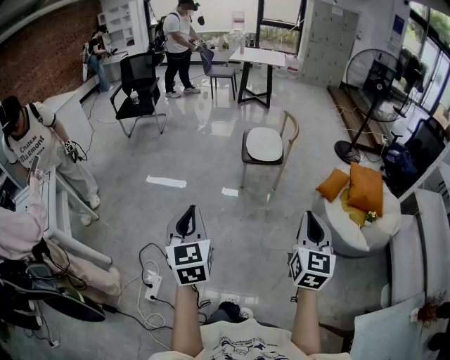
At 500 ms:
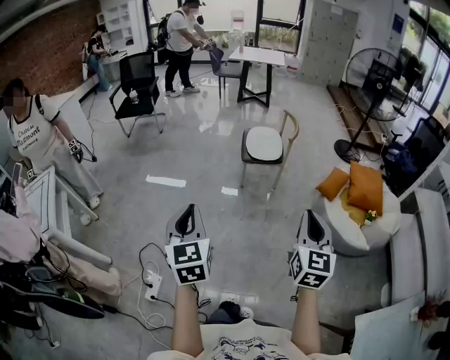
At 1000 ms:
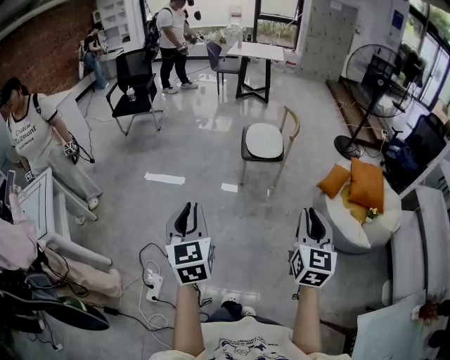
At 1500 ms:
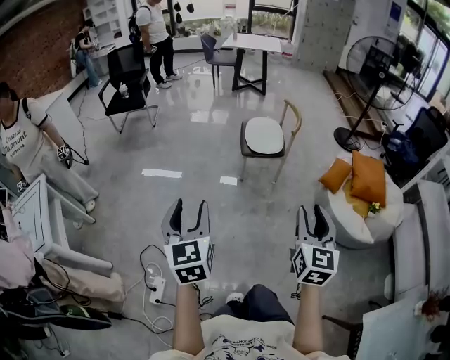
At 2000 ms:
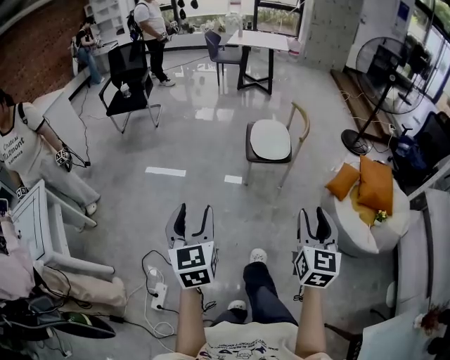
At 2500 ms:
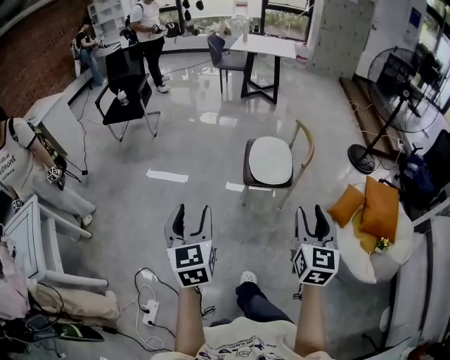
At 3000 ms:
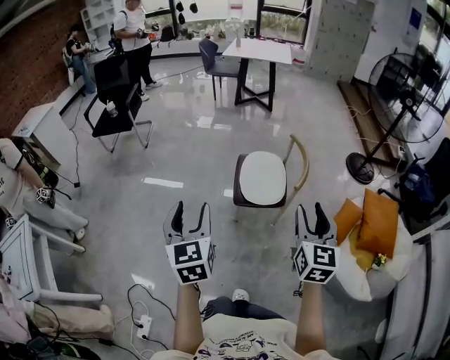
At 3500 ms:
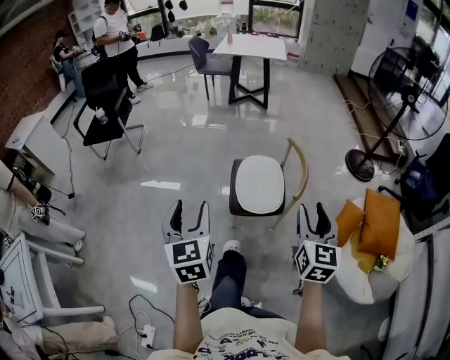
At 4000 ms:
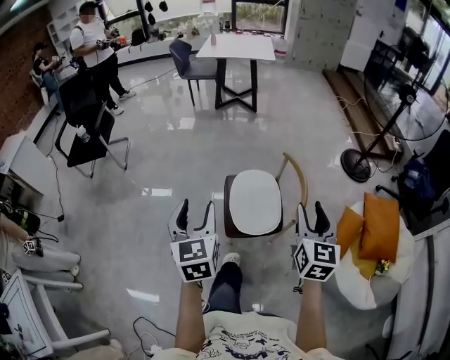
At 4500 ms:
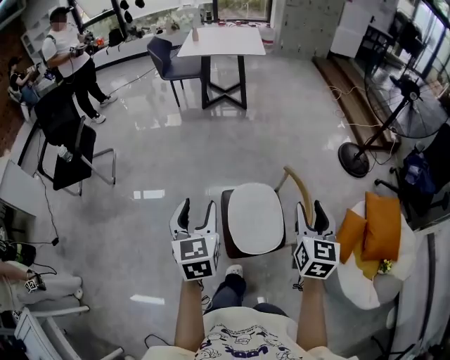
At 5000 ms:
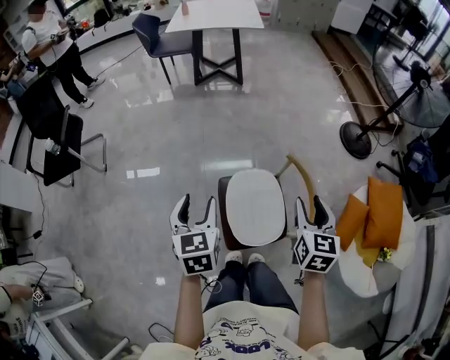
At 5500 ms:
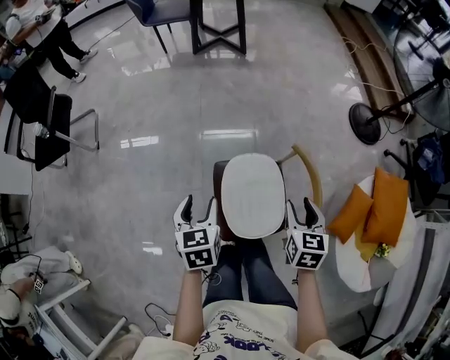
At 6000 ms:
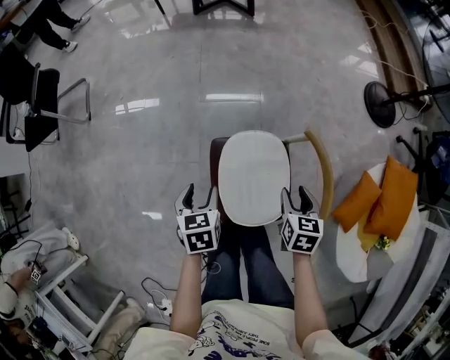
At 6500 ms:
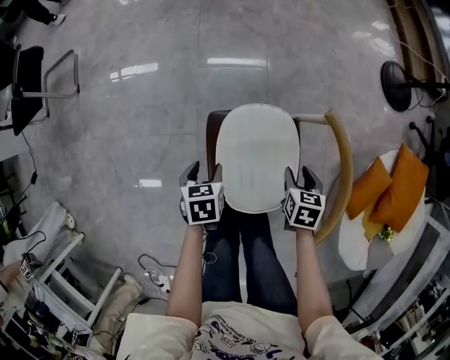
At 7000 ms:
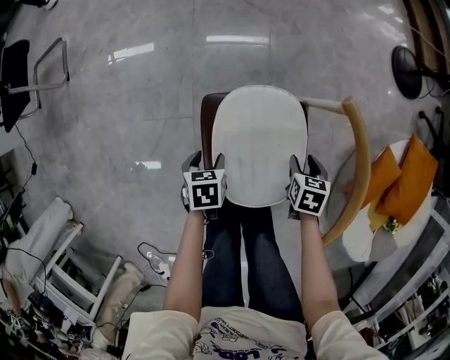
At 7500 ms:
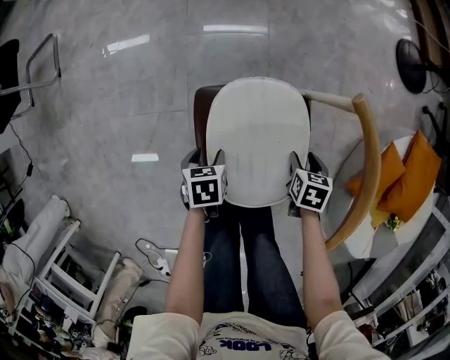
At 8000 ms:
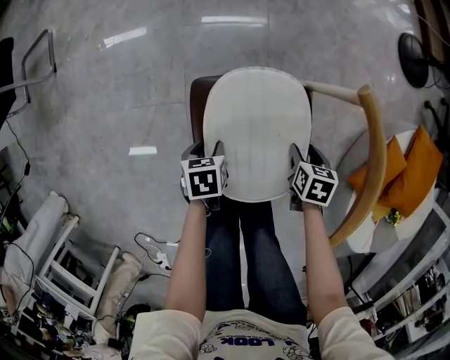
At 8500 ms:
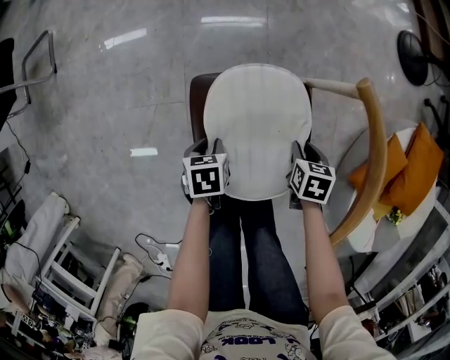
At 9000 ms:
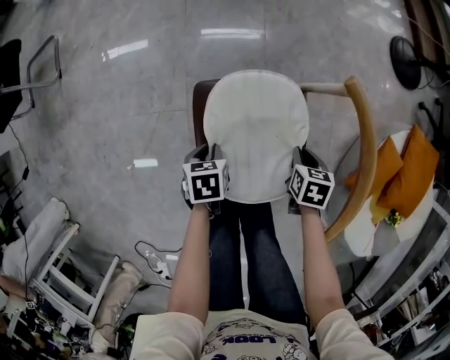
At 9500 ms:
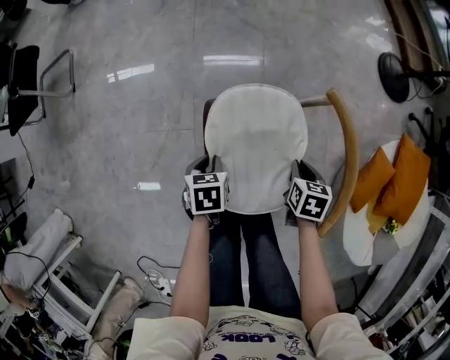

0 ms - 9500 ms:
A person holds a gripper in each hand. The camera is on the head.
0 ms - 2000 ms: The grippers both shift forward by some 20 cm. The right gripper opens up; the left gripper opens its fingers.
2000 ms - 4000 ms: The pair of grippers is taken forward, roughly 80 cm.
4000 ms - 5500 ms: Both grippers move forward and downward, some 50 cm. The left gripper swivels about 30 degrees, while the right gripper rotates about 30 degrees.
5500 ms - 7500 ms: The grippers both shift downward by approximately 50 cm. The right gripper angles its fingers downward, by approximately 30 degrees. The left gripper tilts its fingers approximately 30 degrees downward.
7500 ms - 9500 ms: The two grippers go approximately 15 cm upward. The left gripper closes. Meanwhile the right gripper closes its fingers.

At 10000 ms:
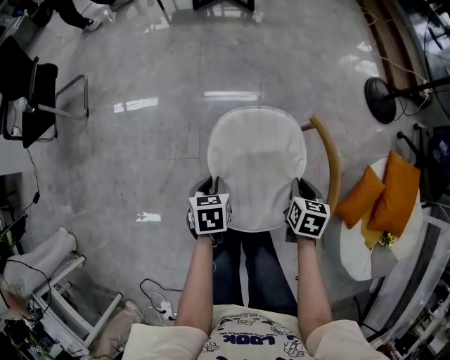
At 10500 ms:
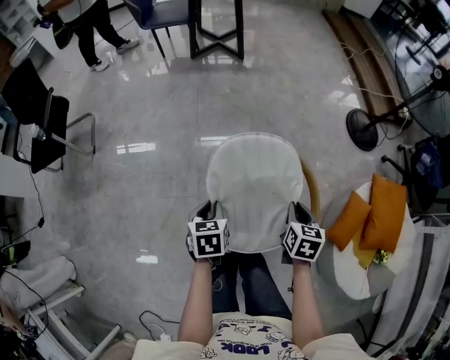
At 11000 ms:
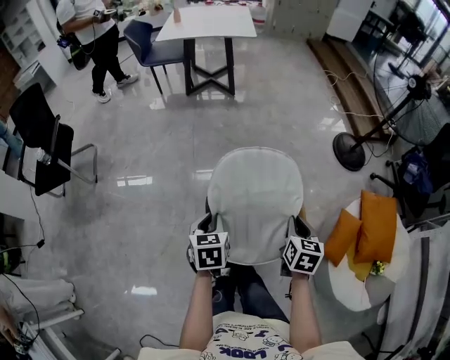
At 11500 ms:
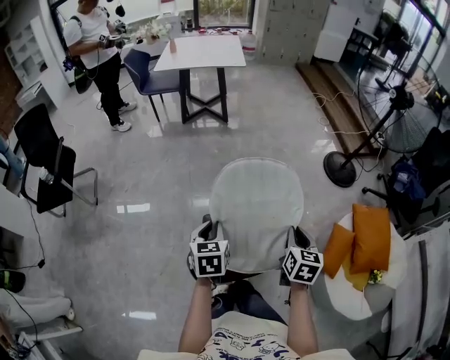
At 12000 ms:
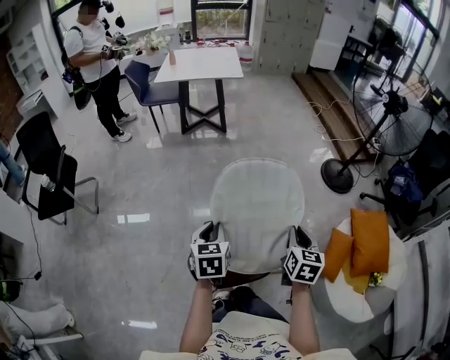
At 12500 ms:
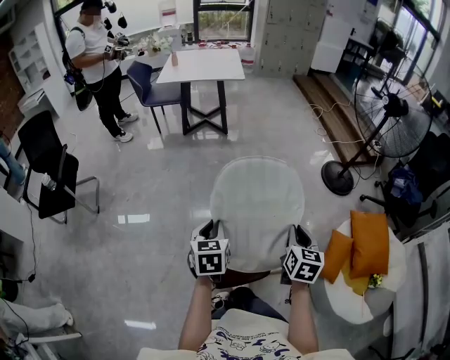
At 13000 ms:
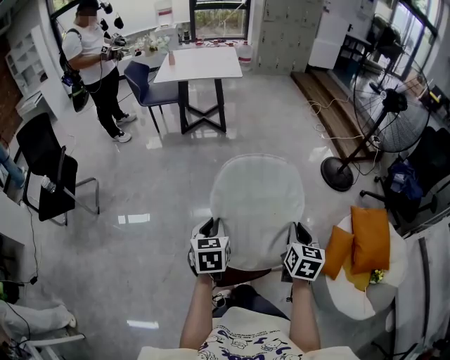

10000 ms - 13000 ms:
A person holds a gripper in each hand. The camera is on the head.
10000 ms - 11500 ms: Both grippers move upward, some 35 cm. The right gripper rotates some 30 degrees; the left gripper changes its angle by approximately 30 degrees.
11500 ms - 13000 ms: The grippers stay close to where they were, moving slightly.

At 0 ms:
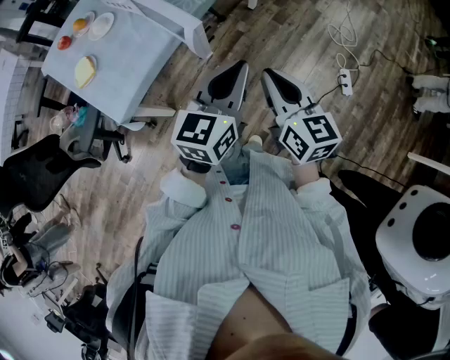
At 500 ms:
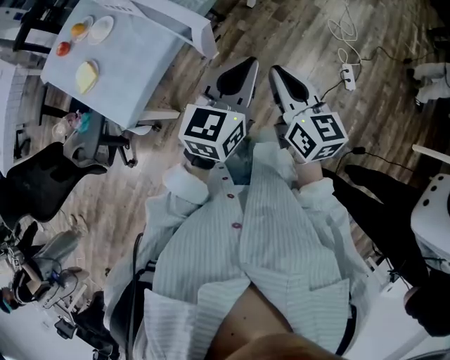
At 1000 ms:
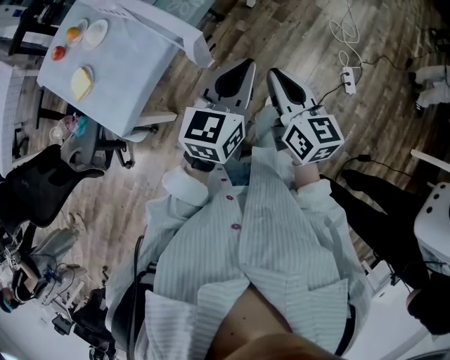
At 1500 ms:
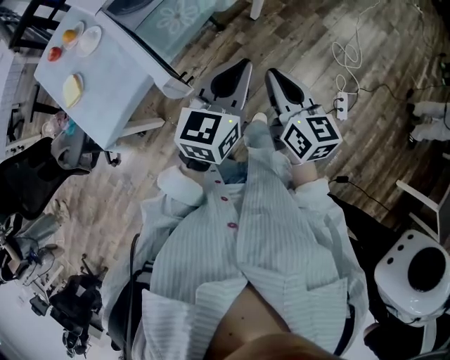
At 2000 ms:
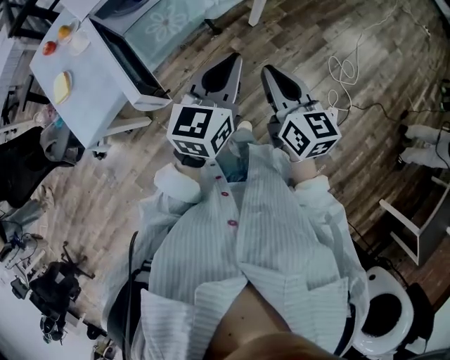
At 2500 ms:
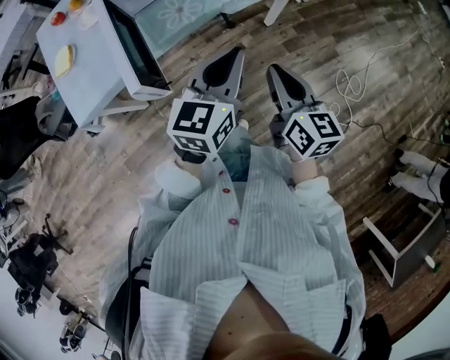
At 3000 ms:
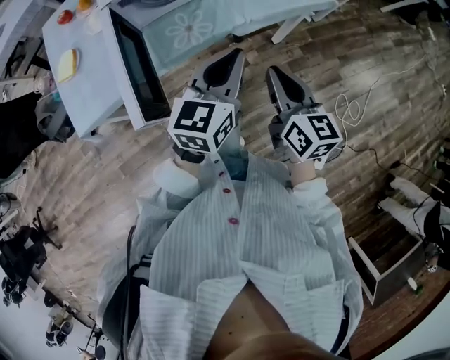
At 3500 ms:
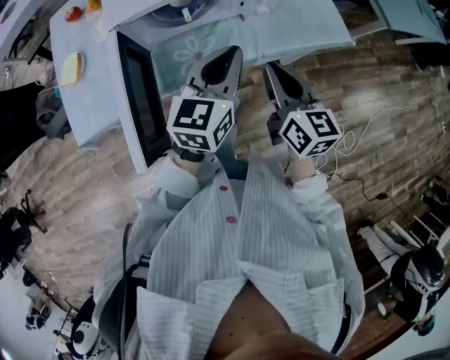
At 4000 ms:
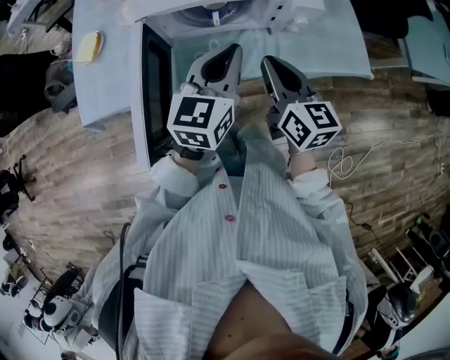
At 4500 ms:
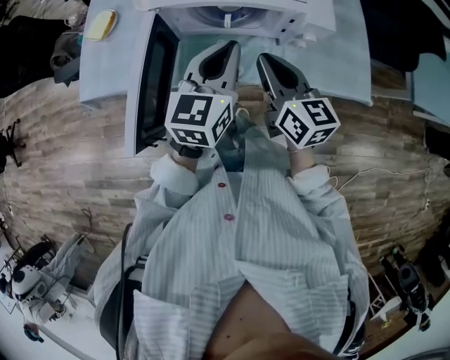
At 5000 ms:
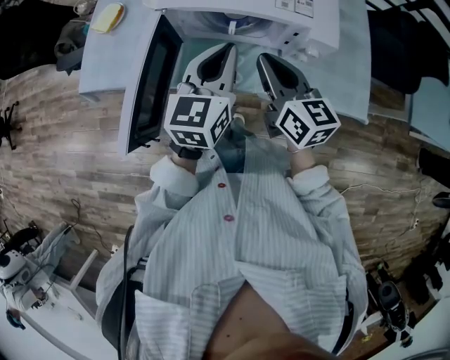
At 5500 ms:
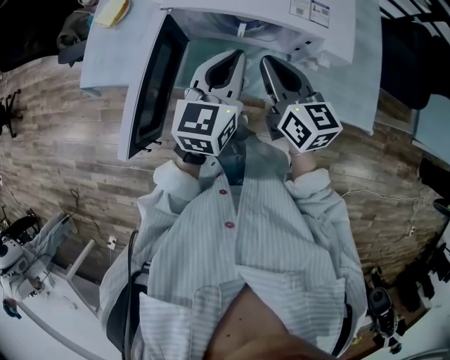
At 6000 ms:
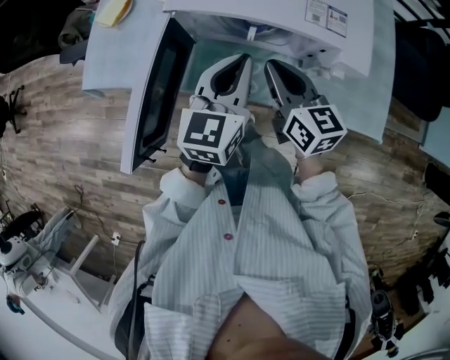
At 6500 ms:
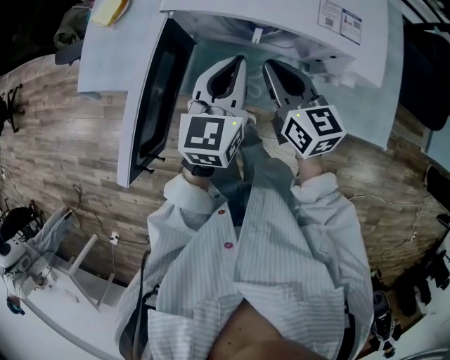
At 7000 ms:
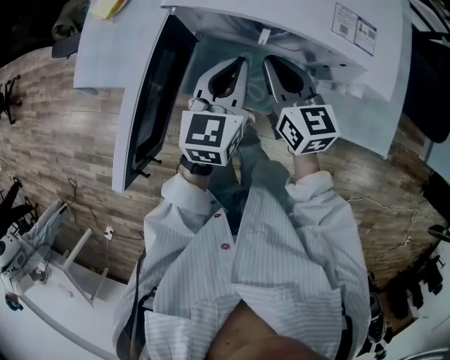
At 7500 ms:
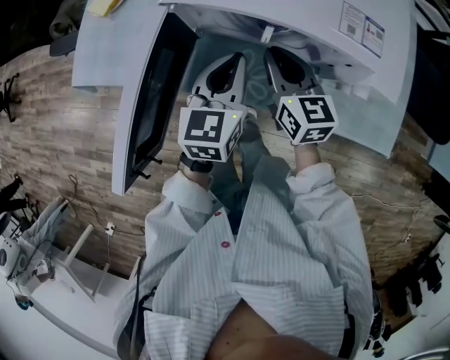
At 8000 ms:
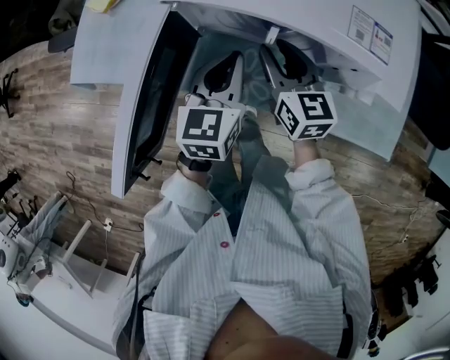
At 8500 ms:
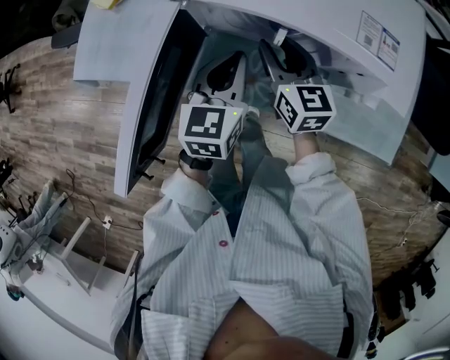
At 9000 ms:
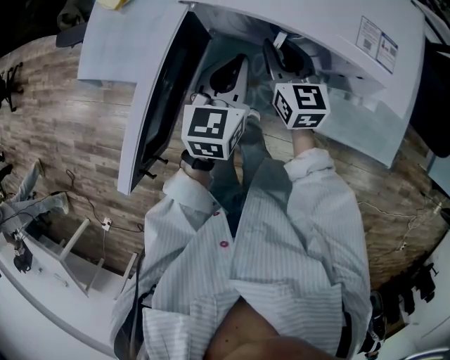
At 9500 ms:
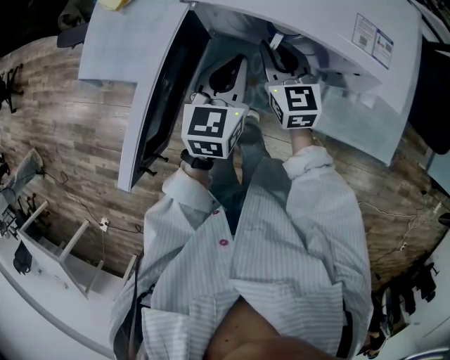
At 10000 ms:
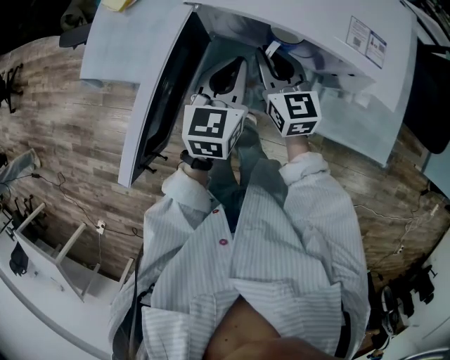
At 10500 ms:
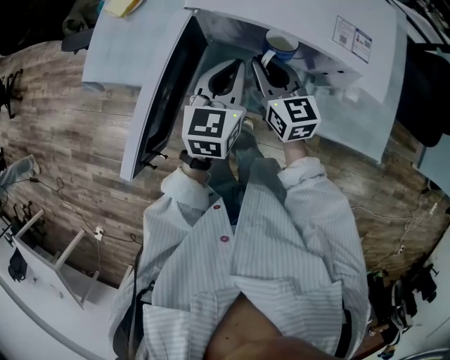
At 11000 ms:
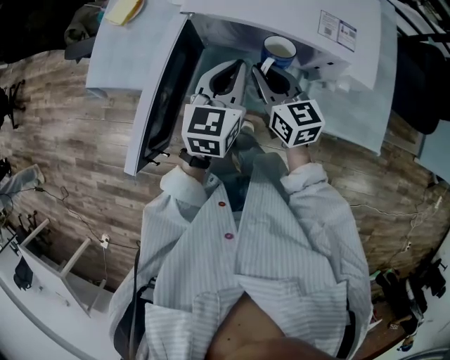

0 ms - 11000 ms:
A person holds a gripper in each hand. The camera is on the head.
0 ms - 2000 ms: The two grippers go approximately 25 cm forward and to the right.
2000 ms - 3500 ms: The grippers both shift forward by about 25 cm. The left gripper changes its angle by about 20 degrees. Meanwhile the right gripper swivels roughly 20 degrees.
3500 ms - 5500 ms: The left gripper shifts by approximately 10 cm, and rotates roughly 30 degrees, while the right gripper ends up some 15 cm from where it was, and rotates about 30 degrees.
5500 ms - 7500 ms: The grippers both shift downward and forward by some 15 cm.
7500 ms - 9000 ms: The right gripper changes place by roughly 5 cm.
9000 ms - 11000 ms: The left gripper shifts some 5 cm upward; the right gripper moves backward and upward, about 10 cm.

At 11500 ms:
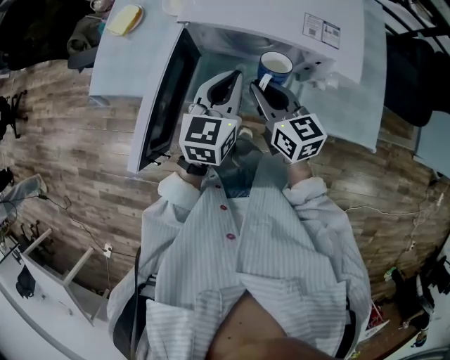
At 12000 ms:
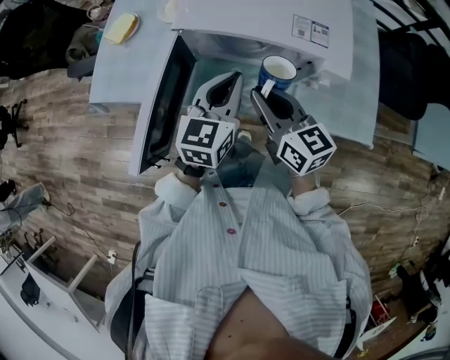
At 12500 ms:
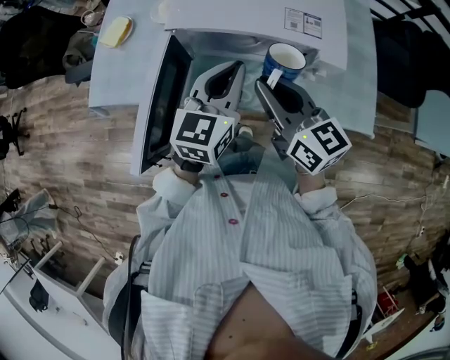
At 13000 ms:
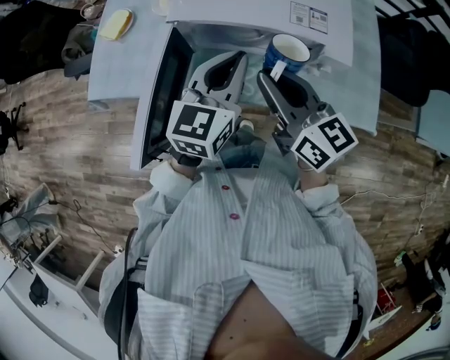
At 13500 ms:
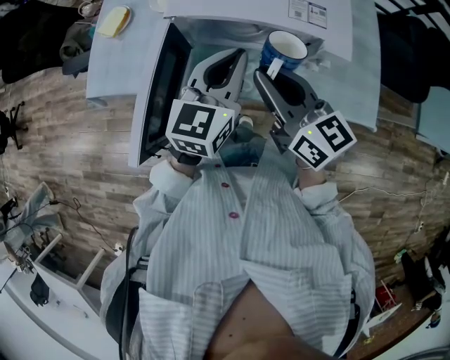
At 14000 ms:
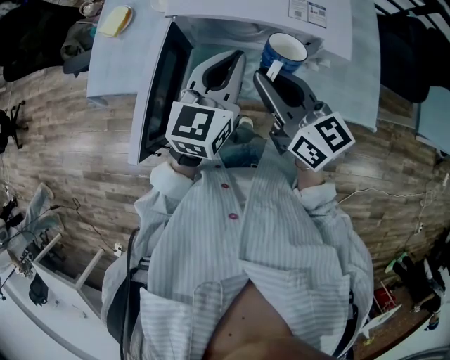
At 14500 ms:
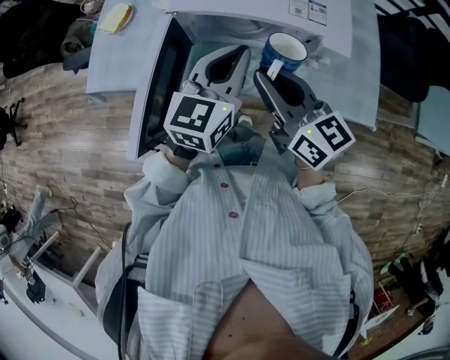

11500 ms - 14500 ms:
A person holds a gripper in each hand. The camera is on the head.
11500 ms - 13000 ms: The right gripper is displaced upward by approximately 10 cm, while the left gripper shifts roughly 5 cm upward.
13000 ms - 14500 ms: The grippers make only small movements.
